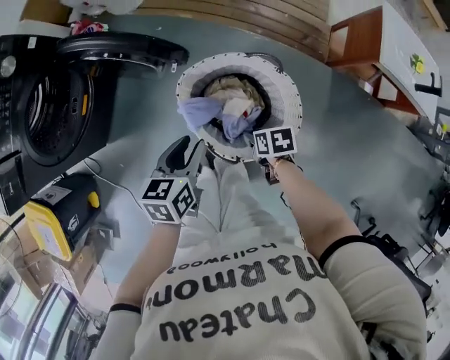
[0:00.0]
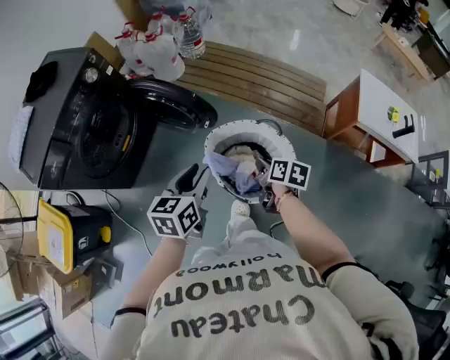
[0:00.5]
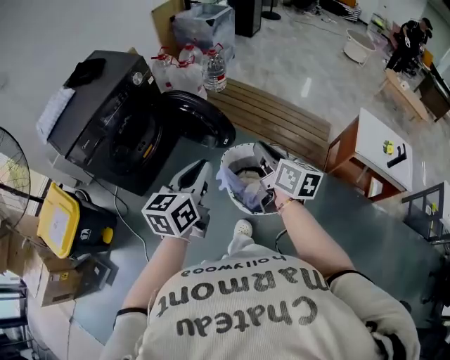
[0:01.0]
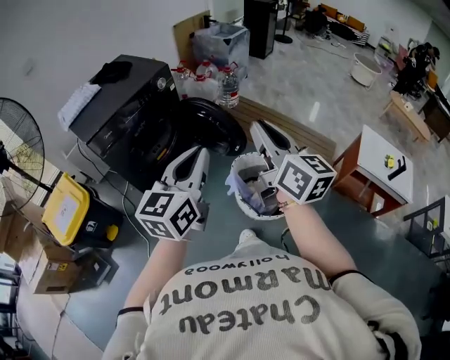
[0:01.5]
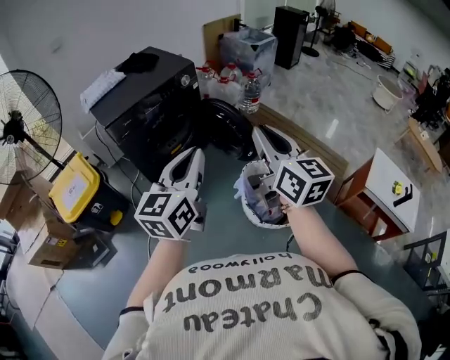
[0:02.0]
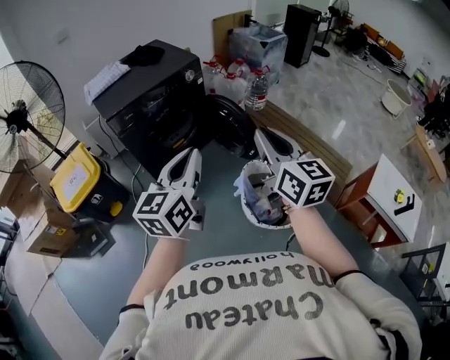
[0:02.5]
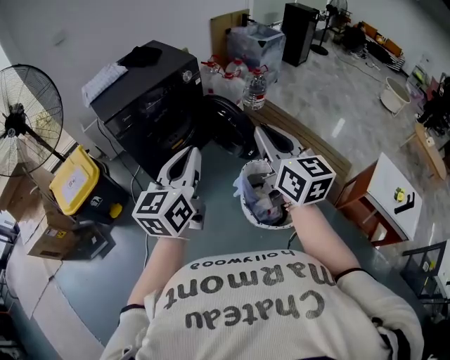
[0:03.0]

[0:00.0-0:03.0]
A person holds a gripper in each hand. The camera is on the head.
0:00.0 to 0:01.5: The two grippers go roughly 50 cm upward. The right gripper tilts its fingers some 70 degrees upward, and closes its fingers; the left gripper points its fingers some 40 degrees further upward, and closes its fingers.
0:01.5 to 0:03.0: There are only small adjustments of the grippers.

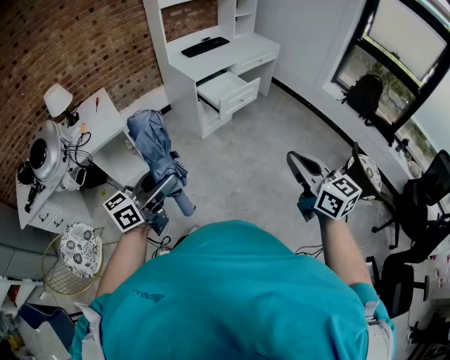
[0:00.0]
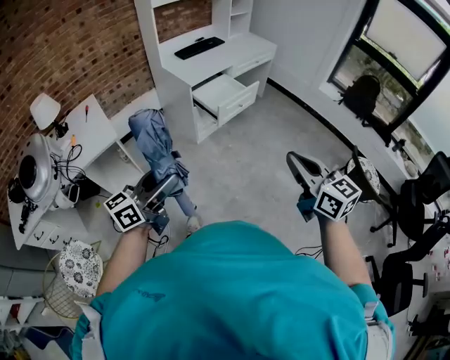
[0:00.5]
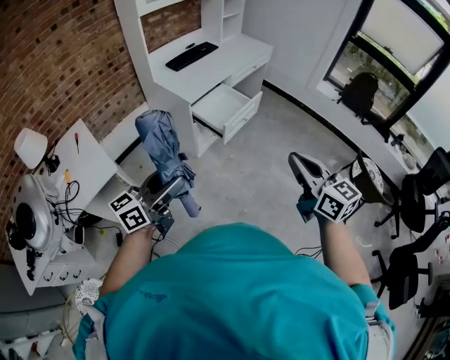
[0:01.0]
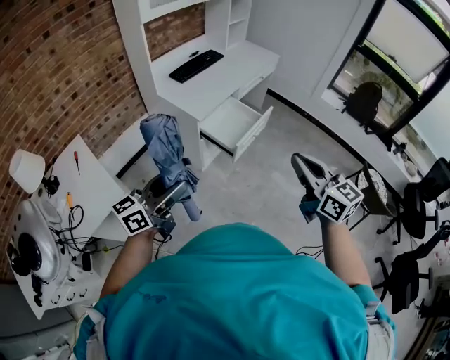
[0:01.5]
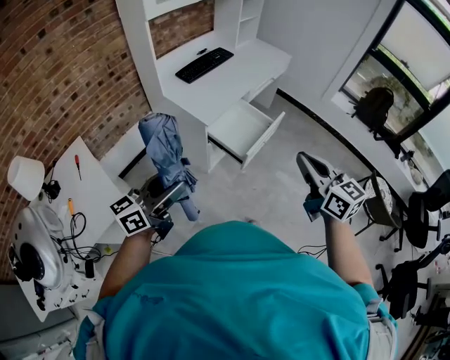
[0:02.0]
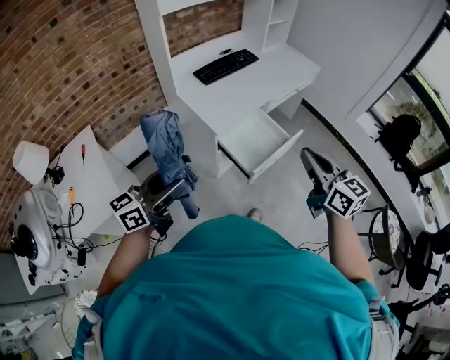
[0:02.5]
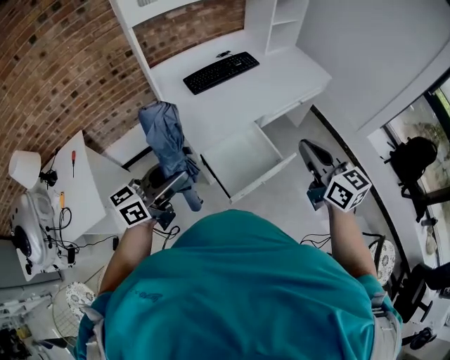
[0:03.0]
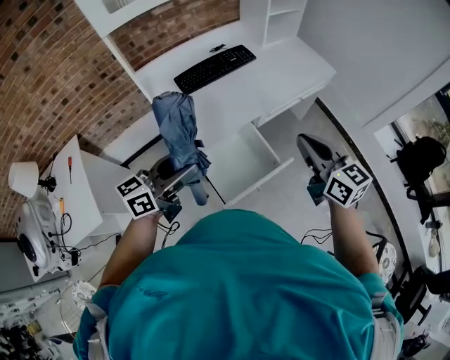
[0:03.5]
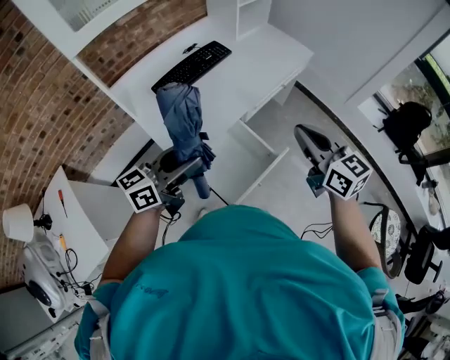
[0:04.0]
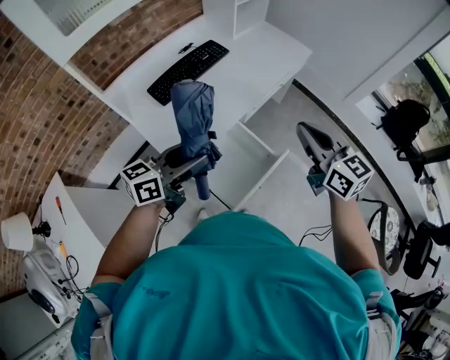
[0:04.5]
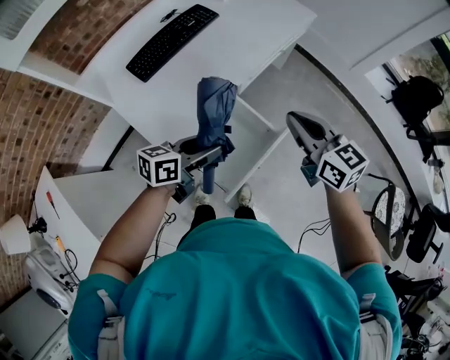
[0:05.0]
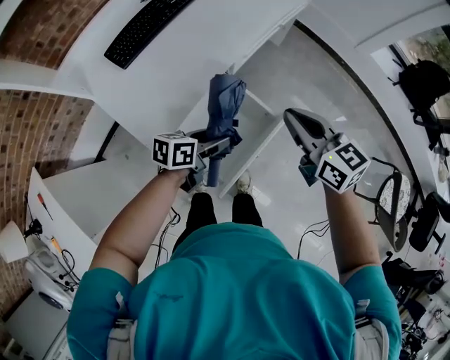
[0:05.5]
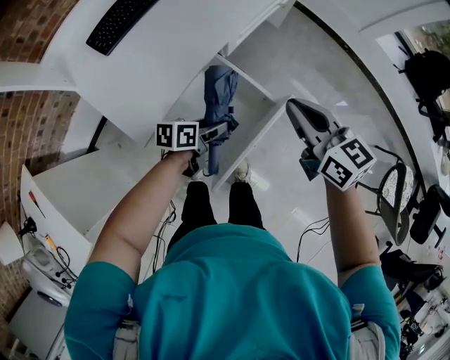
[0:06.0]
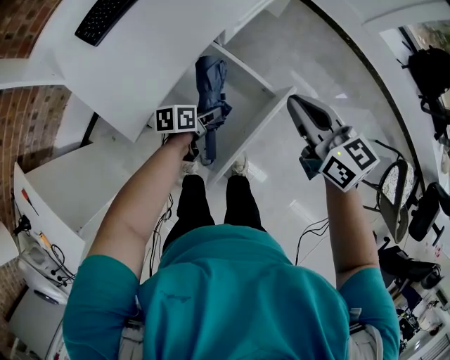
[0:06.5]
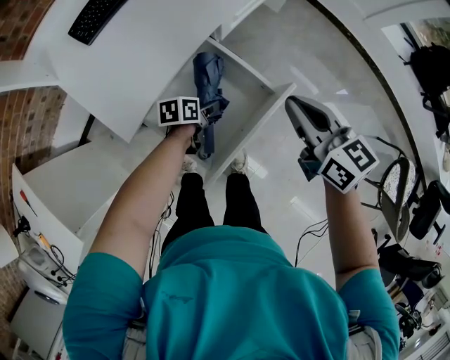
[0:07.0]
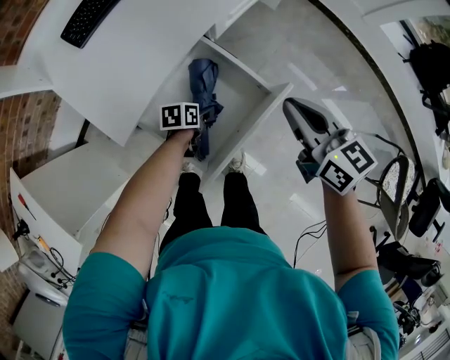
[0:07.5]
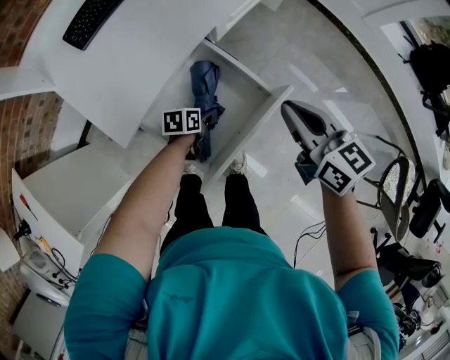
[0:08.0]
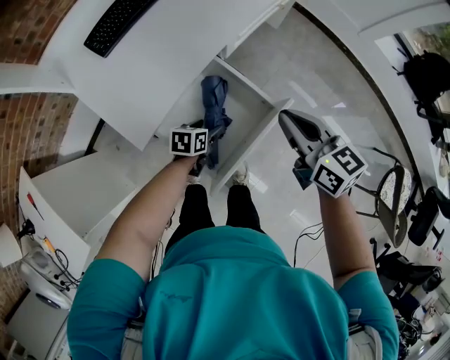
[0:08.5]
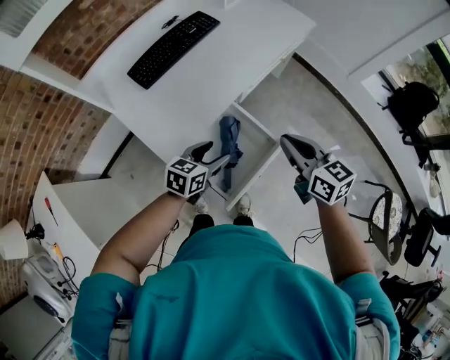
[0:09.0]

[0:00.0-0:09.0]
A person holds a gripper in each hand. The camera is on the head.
0:00.0 to 0:02.0: Both grippers are carried forward and to the left, approximately 50 cm.
0:02.0 to 0:04.5: Both grippers are carried forward, roughly 40 cm.
0:04.5 to 0:07.0: The right gripper travels downward by some 25 cm. Meanwhile the left gripper travels downward by approximately 50 cm, and points its fingers roughly 40 degrees further downward.
0:07.0 to 0:09.0: The right gripper goes about 10 cm upward; the left gripper travels upward by roughly 25 cm, and turns by roughly 40 degrees.

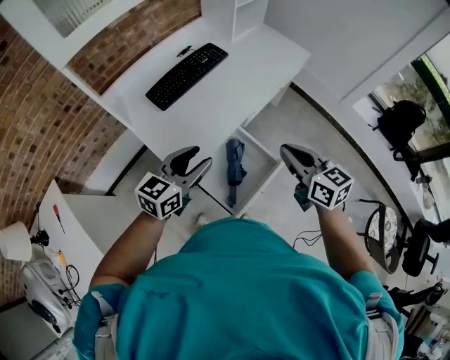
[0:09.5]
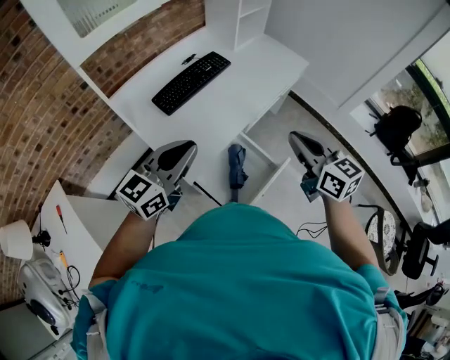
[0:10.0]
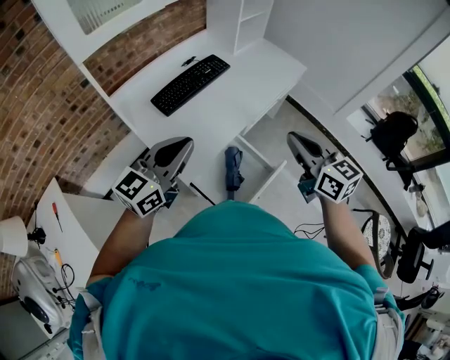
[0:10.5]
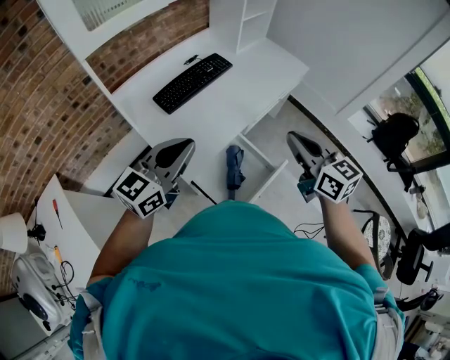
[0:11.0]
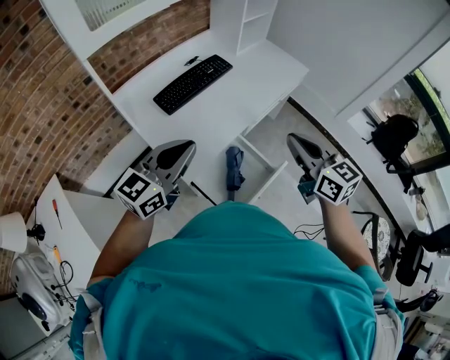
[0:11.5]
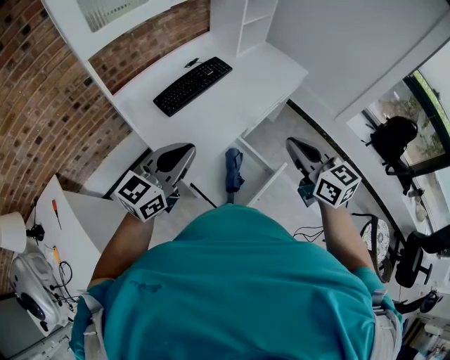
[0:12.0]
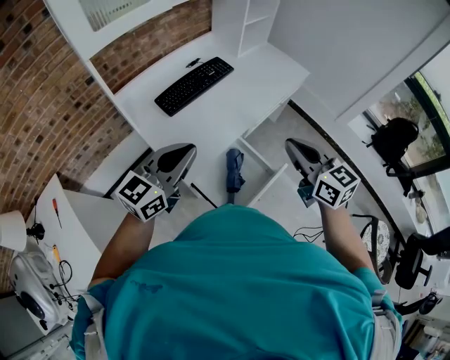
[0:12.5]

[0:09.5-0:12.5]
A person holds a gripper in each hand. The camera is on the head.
0:09.5 to 0:11.0: The grippers both shift upward by some 10 cm. The left gripper closes up.
0:11.0 to 0:12.5: The two grippers keep their place.

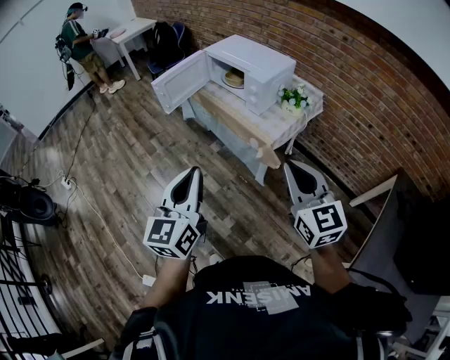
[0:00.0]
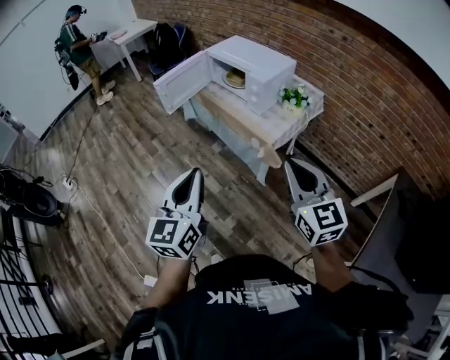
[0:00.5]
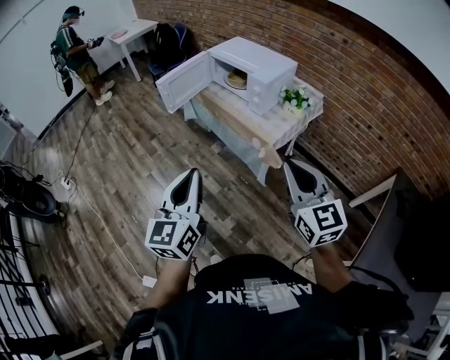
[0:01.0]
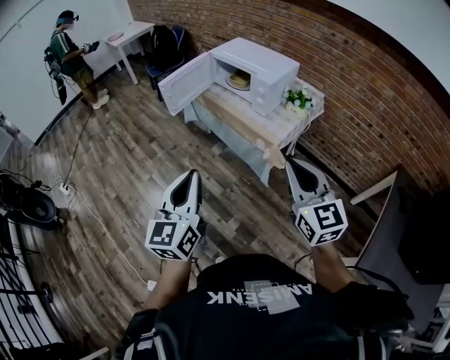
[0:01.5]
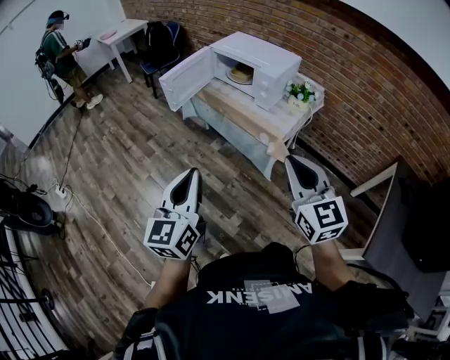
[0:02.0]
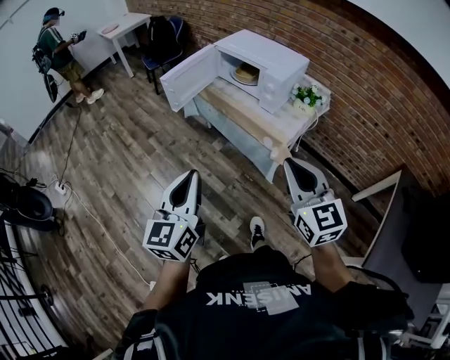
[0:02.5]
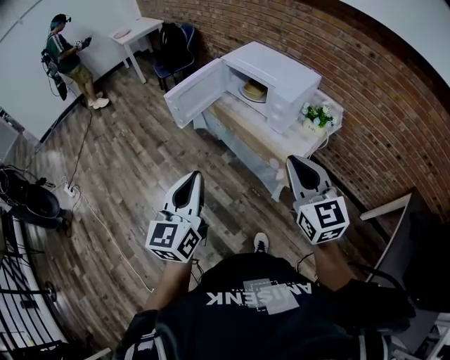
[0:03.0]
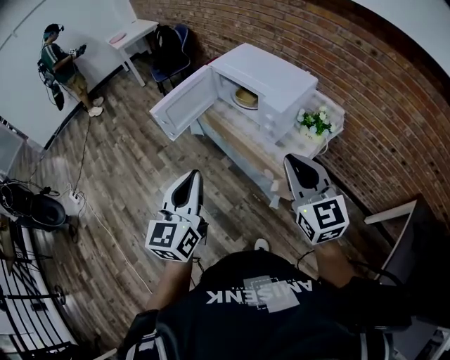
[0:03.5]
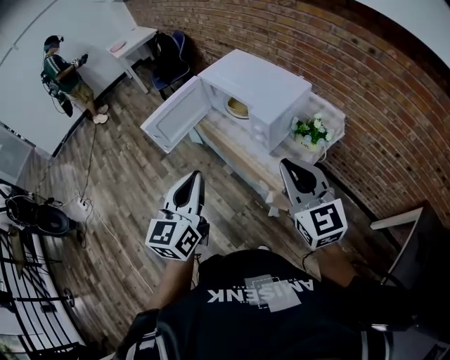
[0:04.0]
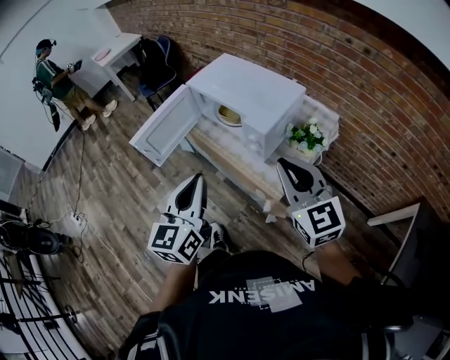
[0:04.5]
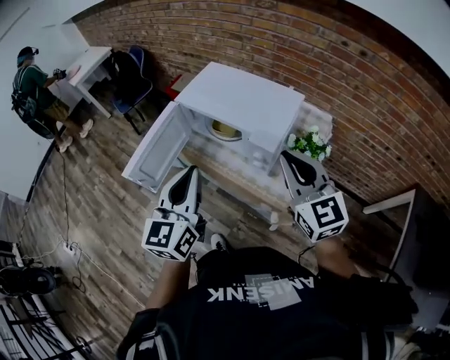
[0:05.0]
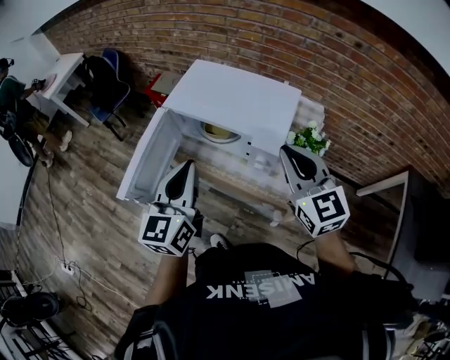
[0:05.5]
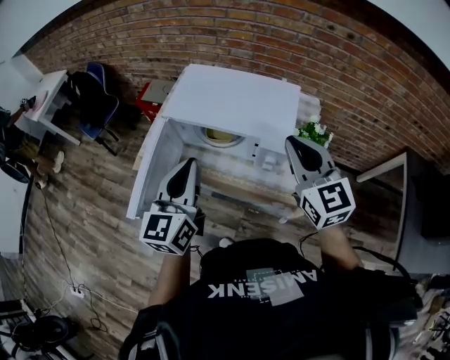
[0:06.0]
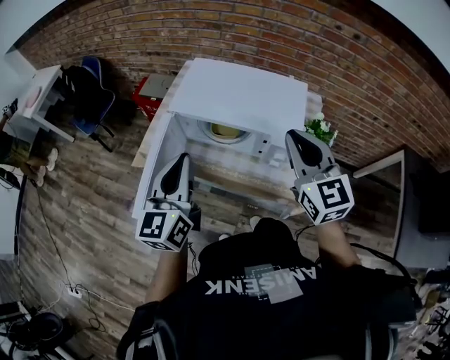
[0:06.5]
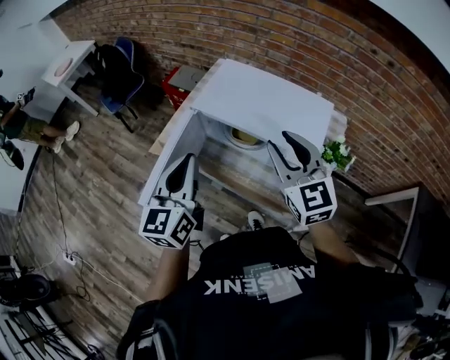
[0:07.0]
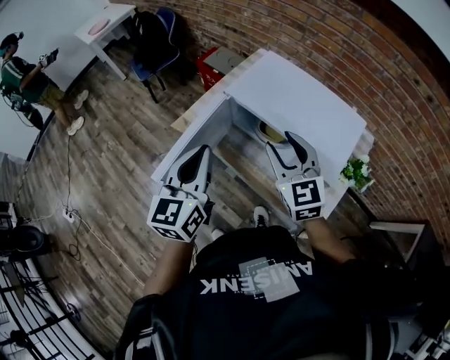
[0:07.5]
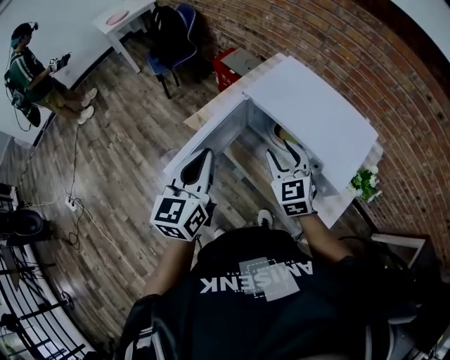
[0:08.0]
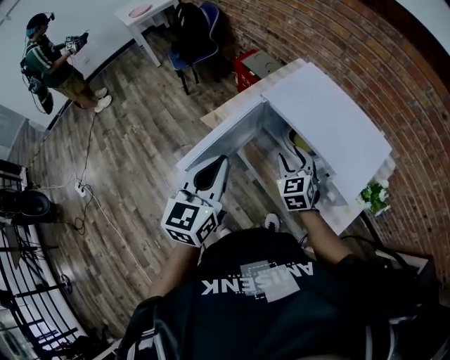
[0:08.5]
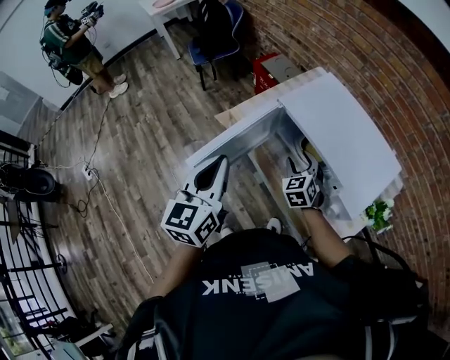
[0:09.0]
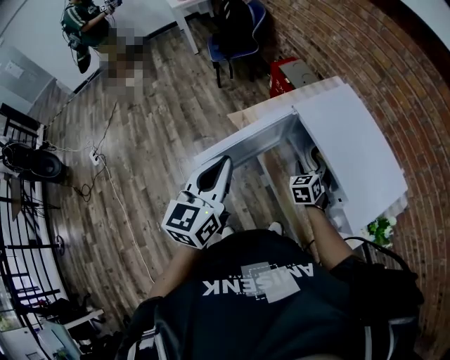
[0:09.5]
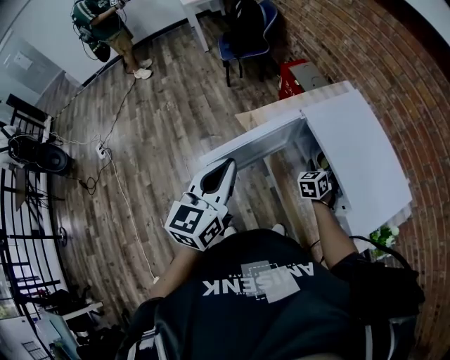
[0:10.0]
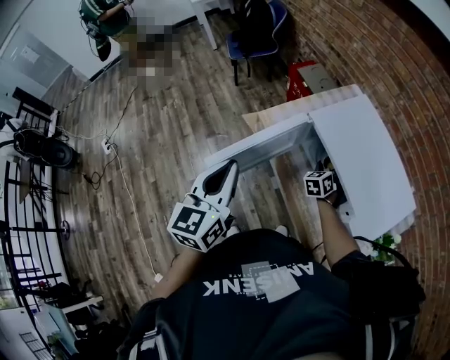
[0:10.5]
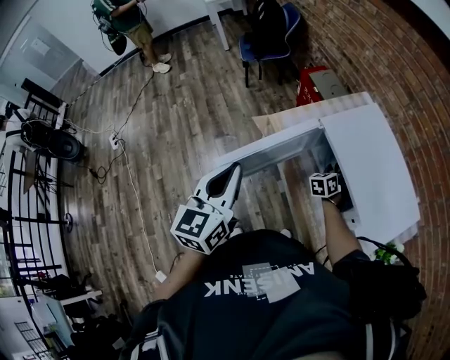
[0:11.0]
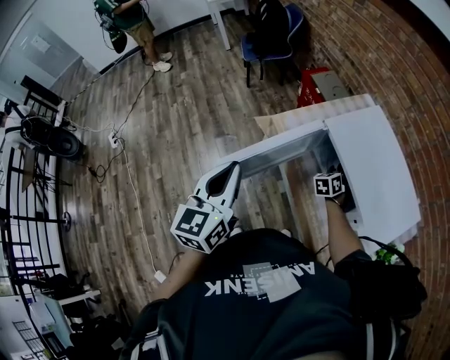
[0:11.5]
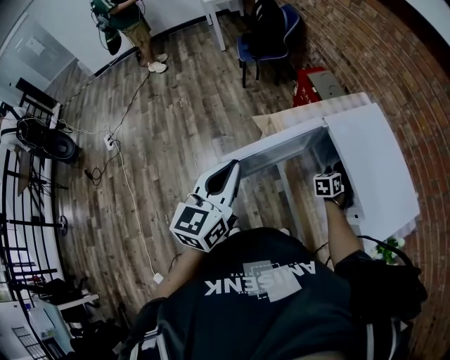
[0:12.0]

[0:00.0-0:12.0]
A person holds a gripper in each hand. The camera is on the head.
0:00.0 to 0:02.0: The two grippers go some 10 cm to the left.
0:02.0 to 0:04.0: The grippers both shift forward and to the right by some 30 cm.
0:04.0 to 0:06.0: The right gripper moves approximately 25 cm, and swivels some 30 degrees; the left gripper changes place by roughly 30 cm, and rotates roughly 30 degrees.
0:06.0 to 0:08.0: The left gripper moves to the left, about 15 cm, and changes its angle by about 20 degrees; the right gripper is displaced to the left, downward and forward by roughly 25 cm, turns by roughly 30 degrees, and opens up.
0:08.0 to 0:10.0: The right gripper shifts some 20 cm downward and forward, and rotates approximately 20 degrees.
0:10.0 to 0:12.0: The left gripper goes about 5 cm to the left. Meanwhile the right gripper closes up.
